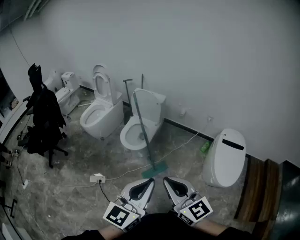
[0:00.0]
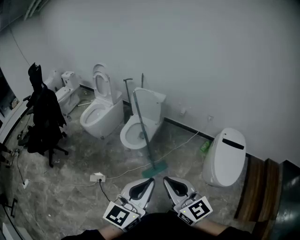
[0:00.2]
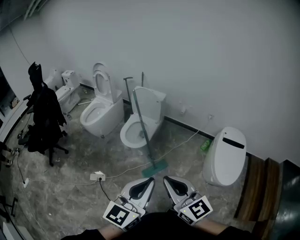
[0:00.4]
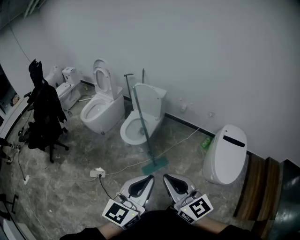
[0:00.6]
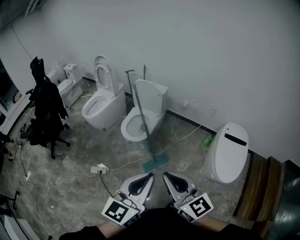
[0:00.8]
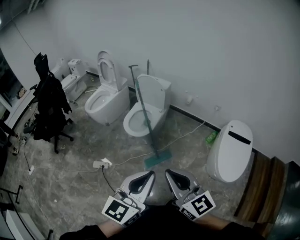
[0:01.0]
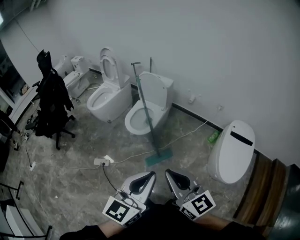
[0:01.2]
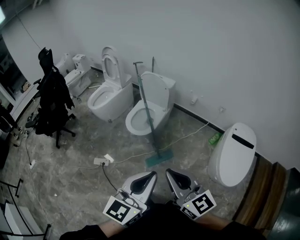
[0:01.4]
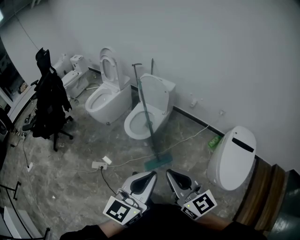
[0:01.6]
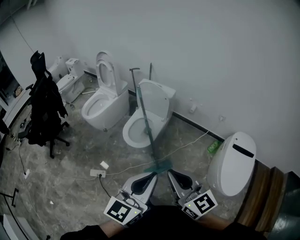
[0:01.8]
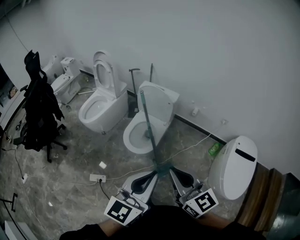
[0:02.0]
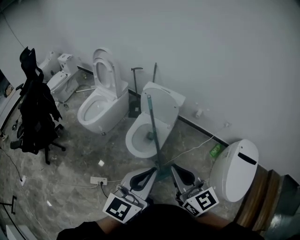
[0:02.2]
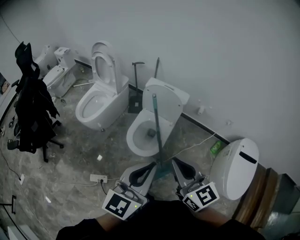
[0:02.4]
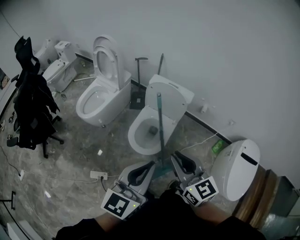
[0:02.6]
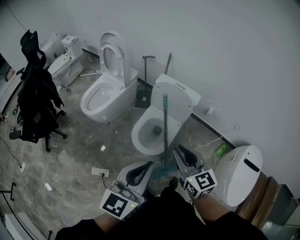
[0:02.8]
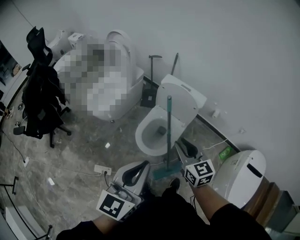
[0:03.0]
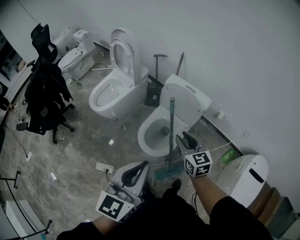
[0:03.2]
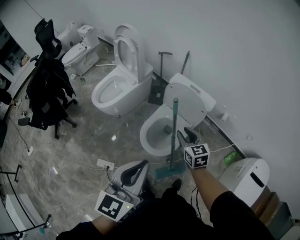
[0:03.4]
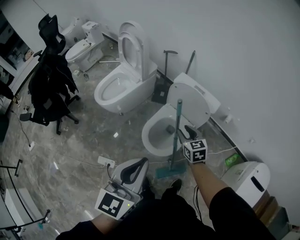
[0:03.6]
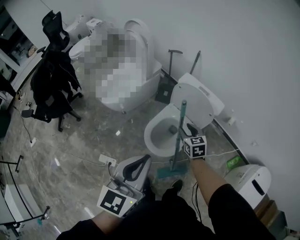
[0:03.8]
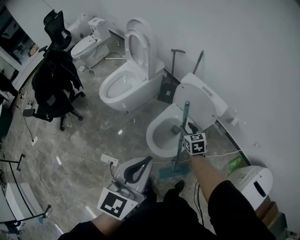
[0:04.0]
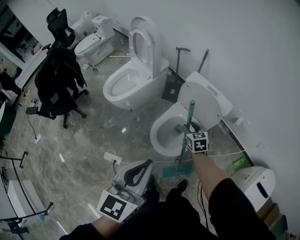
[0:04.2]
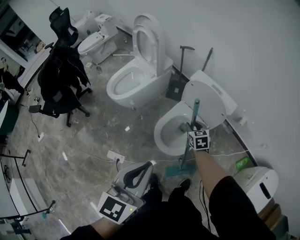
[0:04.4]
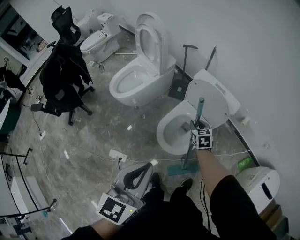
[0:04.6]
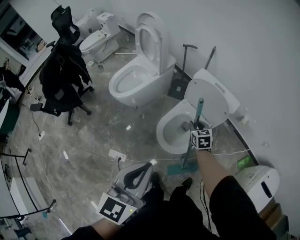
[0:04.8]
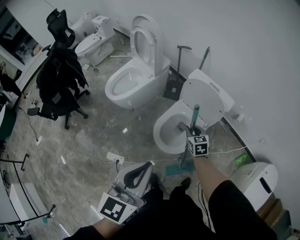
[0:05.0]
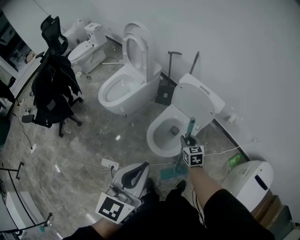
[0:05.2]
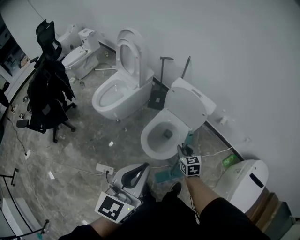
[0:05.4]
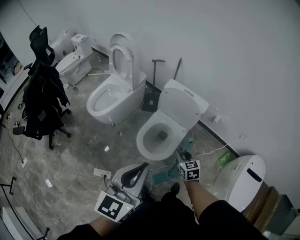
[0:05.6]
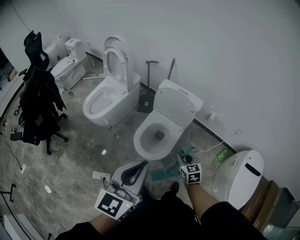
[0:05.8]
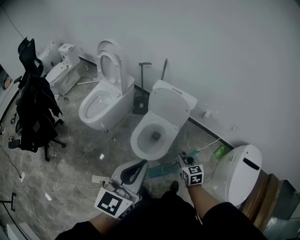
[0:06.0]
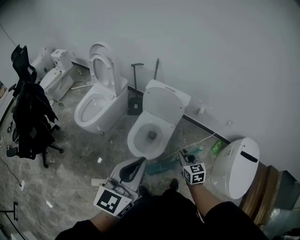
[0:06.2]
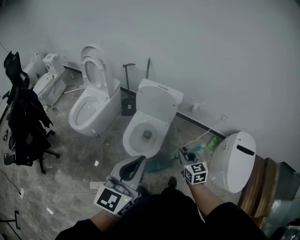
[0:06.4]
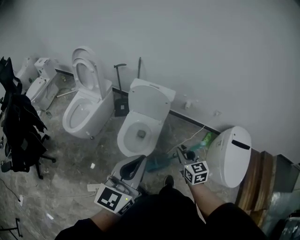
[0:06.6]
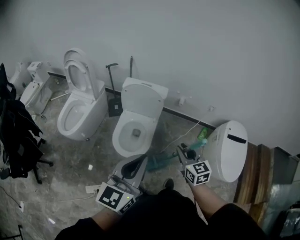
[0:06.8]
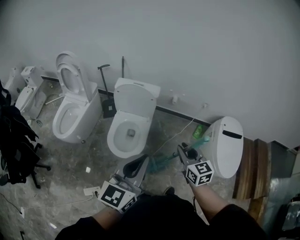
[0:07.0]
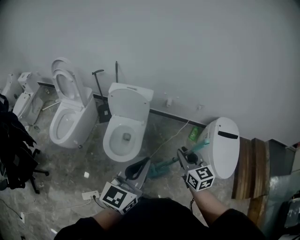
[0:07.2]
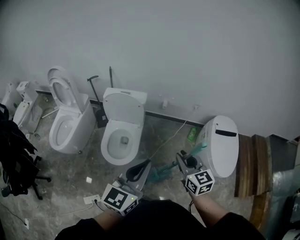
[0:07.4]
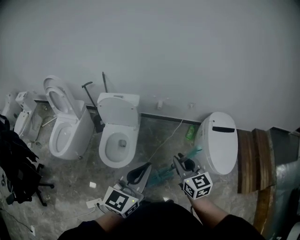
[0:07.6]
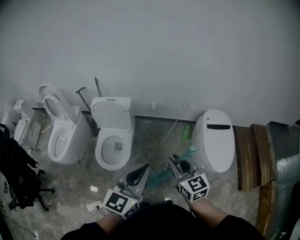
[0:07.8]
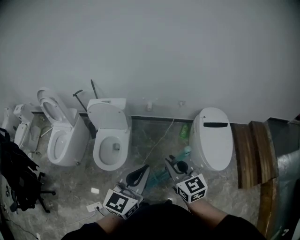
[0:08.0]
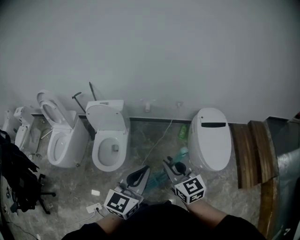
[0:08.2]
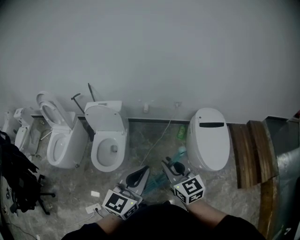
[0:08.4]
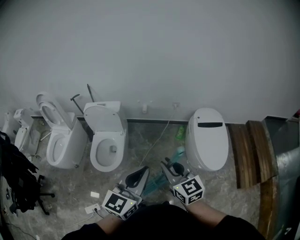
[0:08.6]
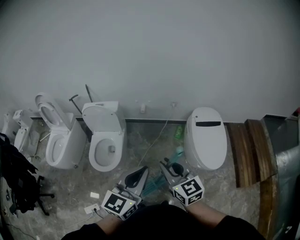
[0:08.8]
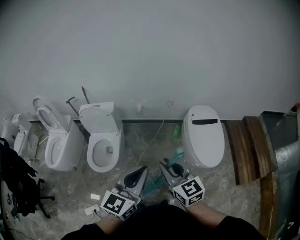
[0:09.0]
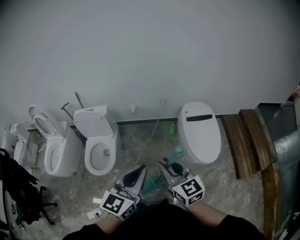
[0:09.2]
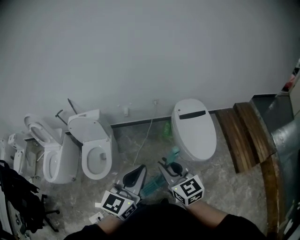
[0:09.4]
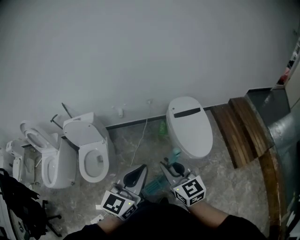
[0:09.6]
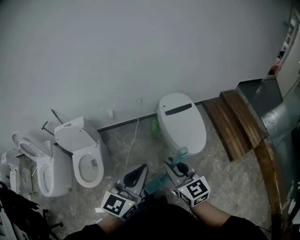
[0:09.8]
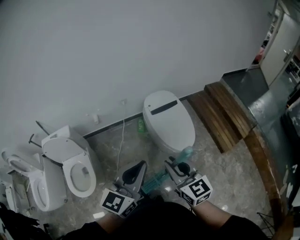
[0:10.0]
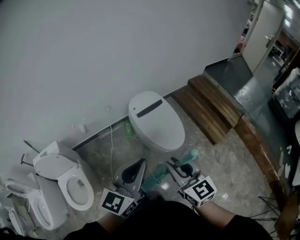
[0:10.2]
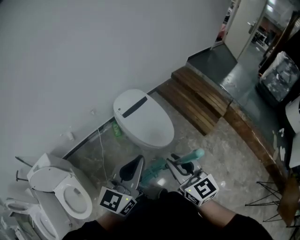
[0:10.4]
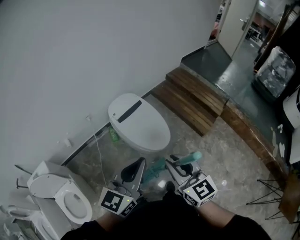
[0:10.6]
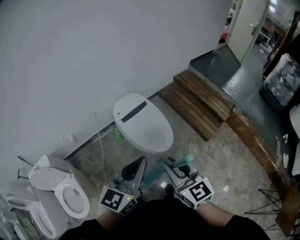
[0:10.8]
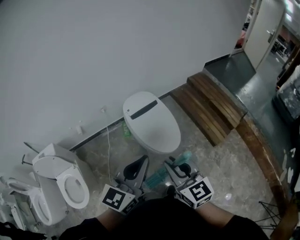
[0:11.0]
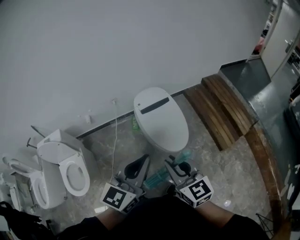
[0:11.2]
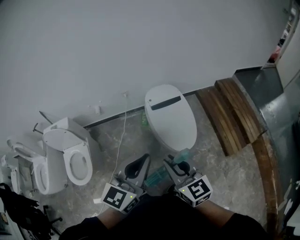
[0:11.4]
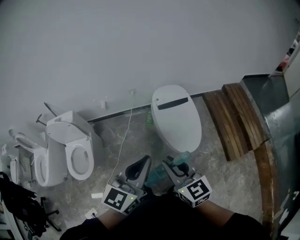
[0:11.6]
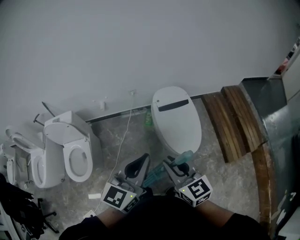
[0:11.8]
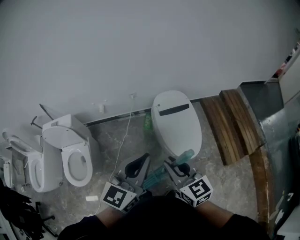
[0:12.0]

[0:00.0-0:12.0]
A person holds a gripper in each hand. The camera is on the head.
0:00.0 to 0:01.6: The grippers both shift forward by approximately 5 cm.
0:01.6 to 0:03.0: The right gripper moves forward, about 40 cm, and opens, while the left gripper shifts about 40 cm forward and to the left.
0:03.0 to 0:04.4: The right gripper goes some 30 cm downward and forward, and turns by some 20 degrees, while the left gripper shifts by about 5 cm.
0:04.4 to 0:06.0: The right gripper is displaced backward by some 20 cm. The left gripper shifts by some 5 cm, and turns by roughly 20 degrees.
0:06.0 to 0:07.6: The left gripper goes about 20 cm to the right, and turns by some 30 degrees. The right gripper goes approximately 25 cm upward, to the right and backward, and swivels about 20 degrees.
0:07.6 to 0:09.0: The left gripper moves to the right, roughly 15 cm. The right gripper moves to the right and backward, roughly 15 cm.
0:09.0 to 0:10.4: The right gripper shifts by about 25 cm, and changes its angle by some 40 degrees. The left gripper ends up some 25 cm from where it was, and swivels about 40 degrees.
0:10.4 to 0:12.0: The left gripper ends up approximately 5 cm from where it was, and changes its angle by about 20 degrees. The right gripper shifts by approximately 10 cm, and swivels roughly 30 degrees.

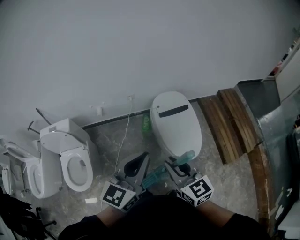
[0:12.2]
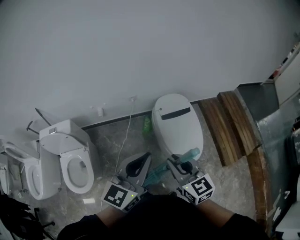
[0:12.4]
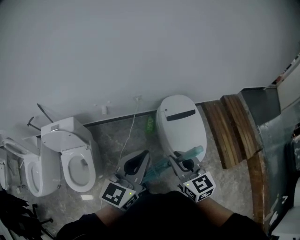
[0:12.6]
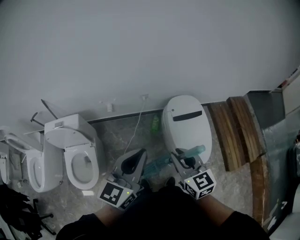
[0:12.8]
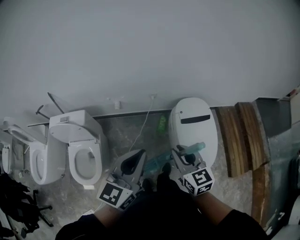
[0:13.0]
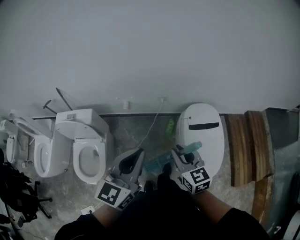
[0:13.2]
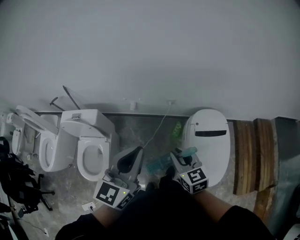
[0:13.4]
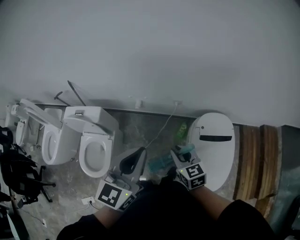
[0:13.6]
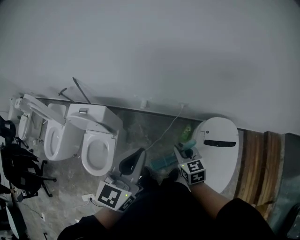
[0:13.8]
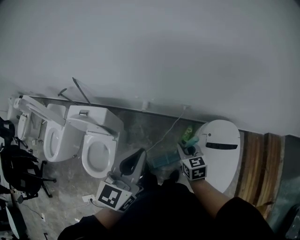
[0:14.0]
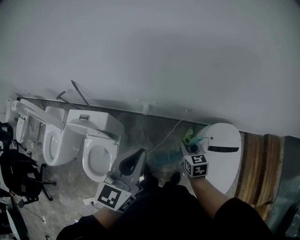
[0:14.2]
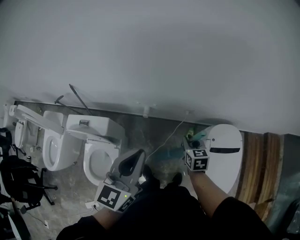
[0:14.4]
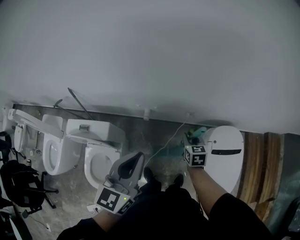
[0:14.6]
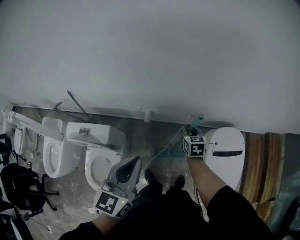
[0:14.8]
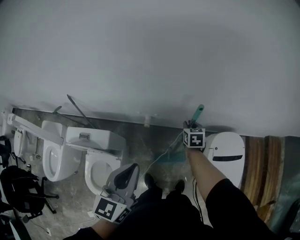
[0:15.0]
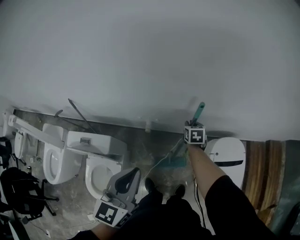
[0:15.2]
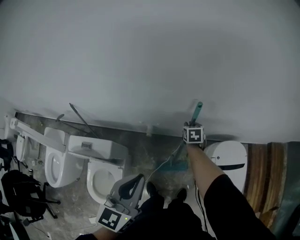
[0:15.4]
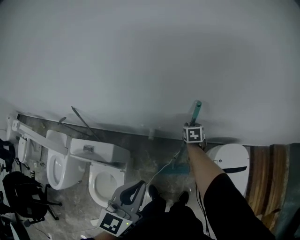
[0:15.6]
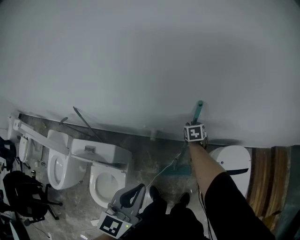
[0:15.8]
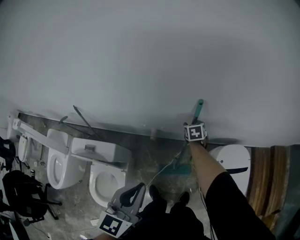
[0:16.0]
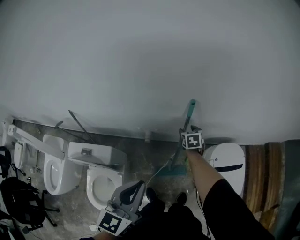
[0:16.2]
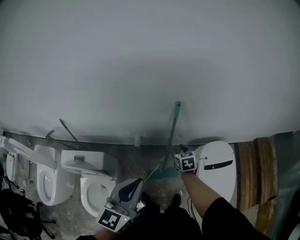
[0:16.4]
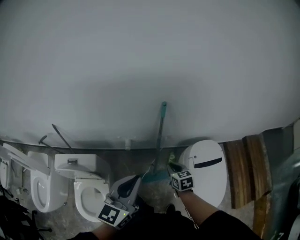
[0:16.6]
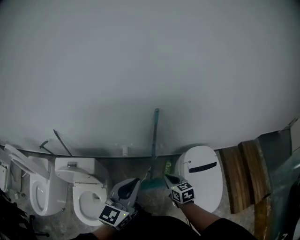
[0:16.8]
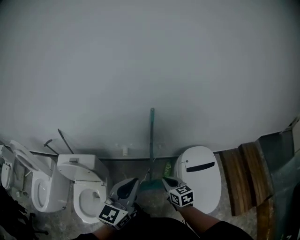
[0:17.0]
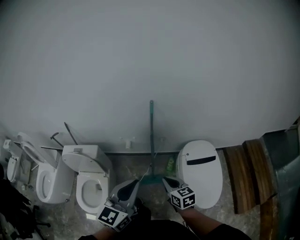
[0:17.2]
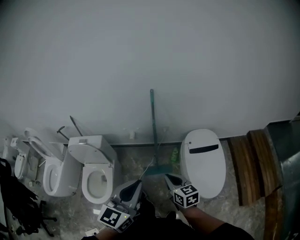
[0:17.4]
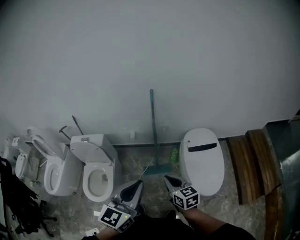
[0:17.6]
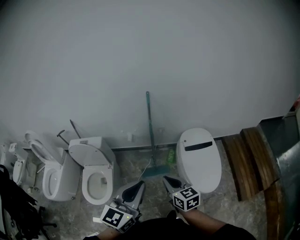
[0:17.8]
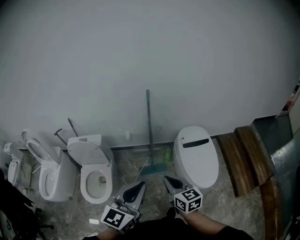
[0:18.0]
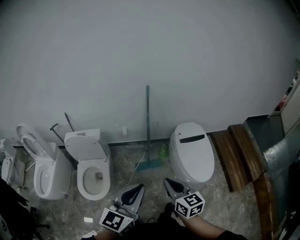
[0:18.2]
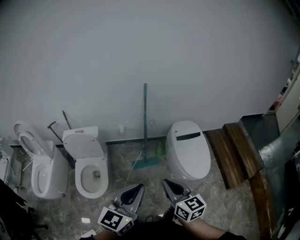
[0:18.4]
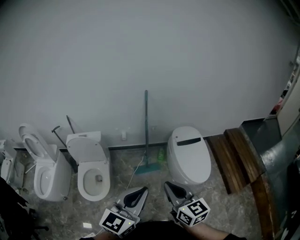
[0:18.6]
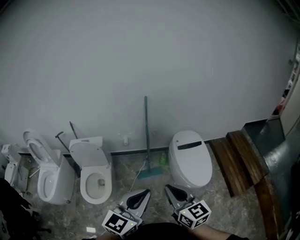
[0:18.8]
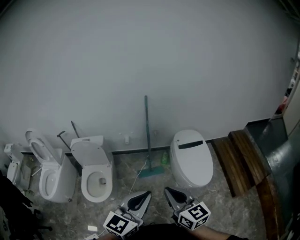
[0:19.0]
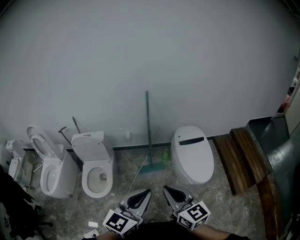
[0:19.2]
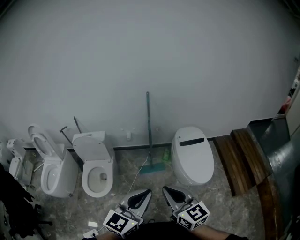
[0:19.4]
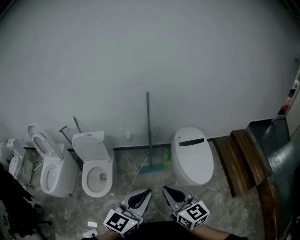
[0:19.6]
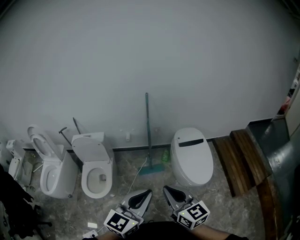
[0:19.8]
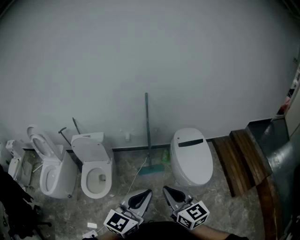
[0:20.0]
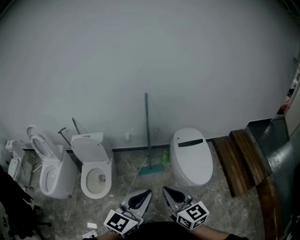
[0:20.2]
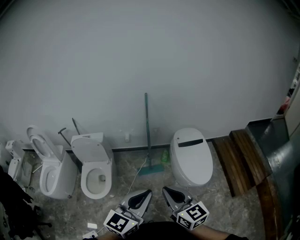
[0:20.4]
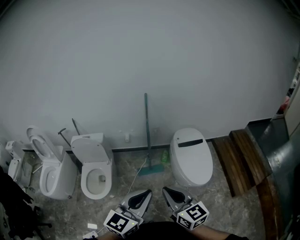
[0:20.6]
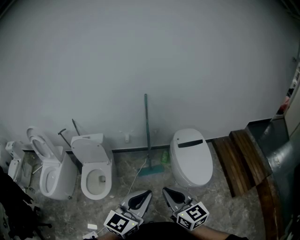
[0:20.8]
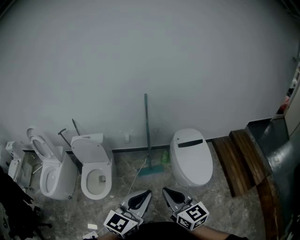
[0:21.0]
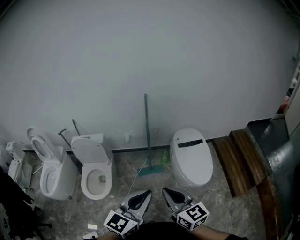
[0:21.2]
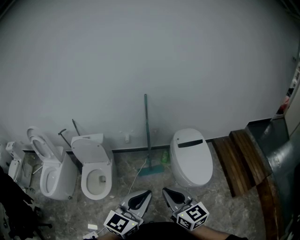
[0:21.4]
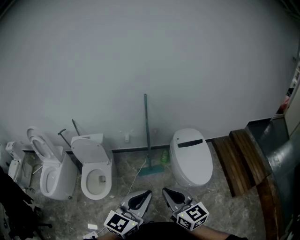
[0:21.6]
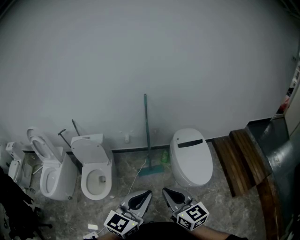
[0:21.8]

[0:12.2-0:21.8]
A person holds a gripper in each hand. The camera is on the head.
0:12.2 to 0:13.8: The right gripper shifts by some 35 cm, and swivels approximately 20 degrees, while the left gripper shifts by approximately 25 cm, and changes its angle by about 30 degrees.
0:13.8 to 0:15.4: The right gripper goes about 30 cm forward, and turns by some 30 degrees. Meanwhile the left gripper shifts about 15 cm forward and to the left.
0:15.4 to 0:17.0: The right gripper travels backward by approximately 35 cm, changes its angle by some 20 degrees, and opens and closes again. Meanwhile the left gripper travels backward and to the right by about 15 cm.
0:17.0 to 0:18.6: The left gripper moves backward, about 35 cm, while the right gripper is displaced backward and upward by approximately 40 cm, and rotates roughly 20 degrees.
0:18.6 to 0:20.2: The left gripper moves to the right, some 5 cm. The right gripper changes place by approximately 5 cm.
0:20.2 to 0:21.8: Both grippers stay put.

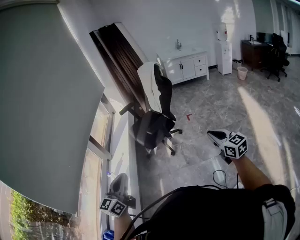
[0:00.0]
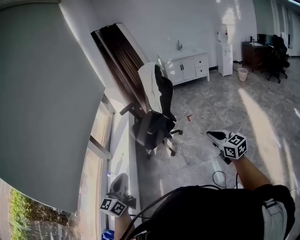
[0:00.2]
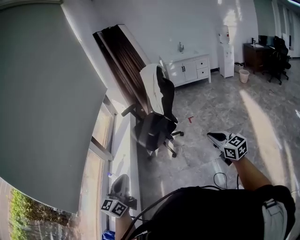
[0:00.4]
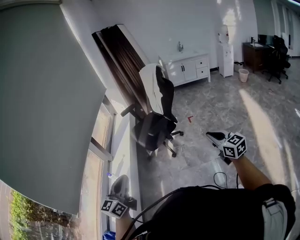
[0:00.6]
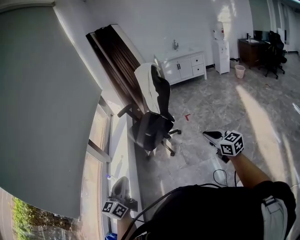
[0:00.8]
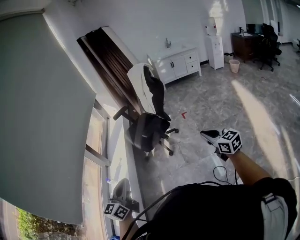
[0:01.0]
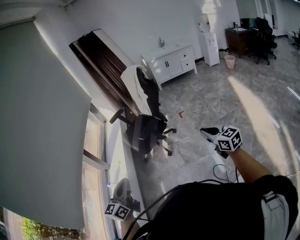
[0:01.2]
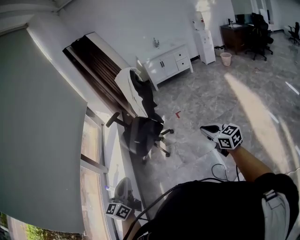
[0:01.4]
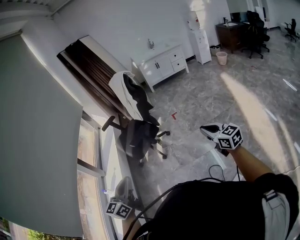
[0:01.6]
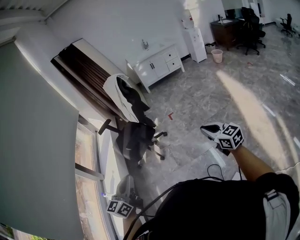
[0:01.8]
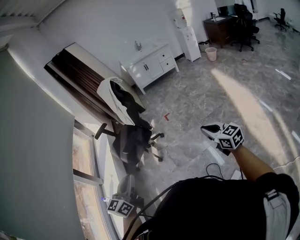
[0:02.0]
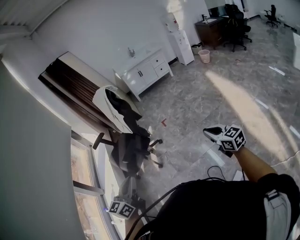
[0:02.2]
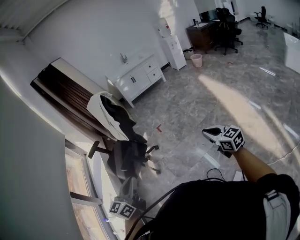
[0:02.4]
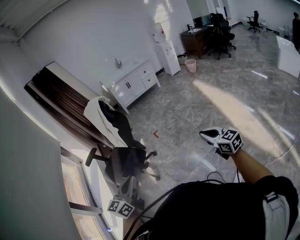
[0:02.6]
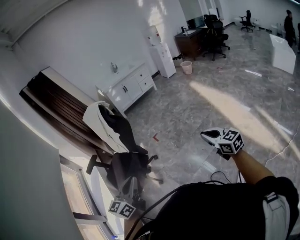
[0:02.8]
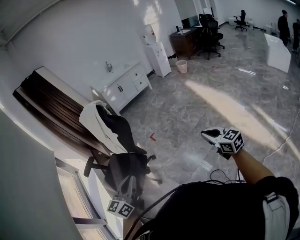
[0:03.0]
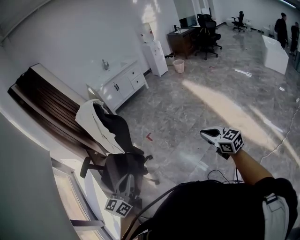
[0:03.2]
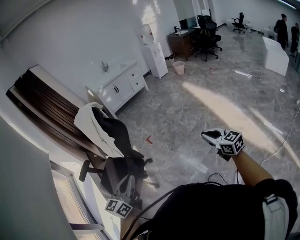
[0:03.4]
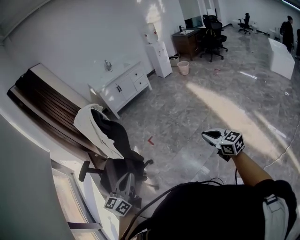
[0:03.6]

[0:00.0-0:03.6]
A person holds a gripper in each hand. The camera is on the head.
0:00.0 to 0:01.8: The left gripper heads to the right and forward, covering some 25 cm. Meanwhile the right gripper shifts roughly 20 cm to the right.
0:01.8 to 0:03.6: The right gripper moves some 25 cm, and turns by roughly 20 degrees. Meanwhile the left gripper ends up some 40 cm from where it was, and swivels roughly 30 degrees.
